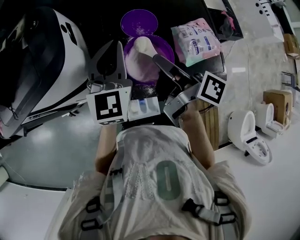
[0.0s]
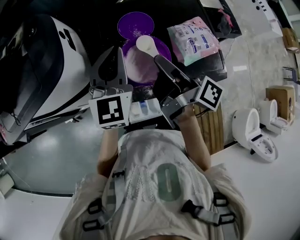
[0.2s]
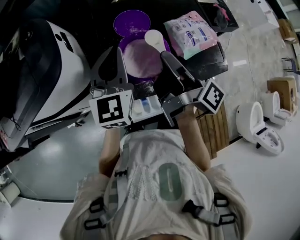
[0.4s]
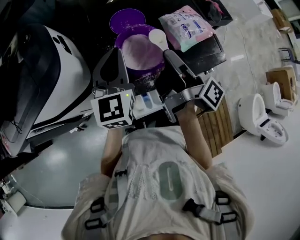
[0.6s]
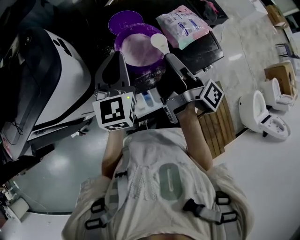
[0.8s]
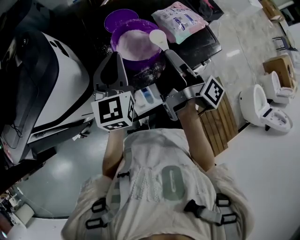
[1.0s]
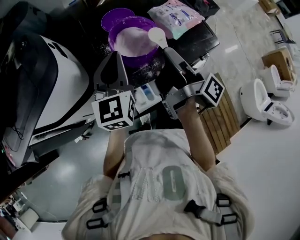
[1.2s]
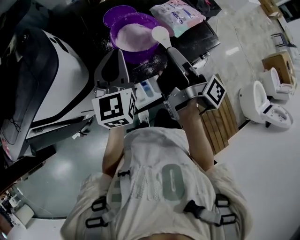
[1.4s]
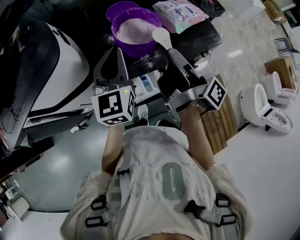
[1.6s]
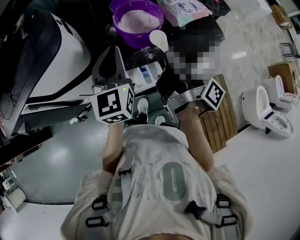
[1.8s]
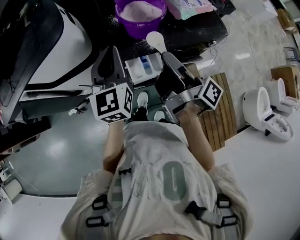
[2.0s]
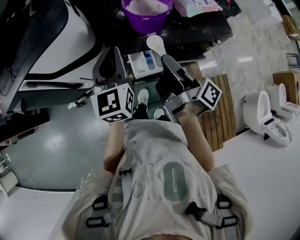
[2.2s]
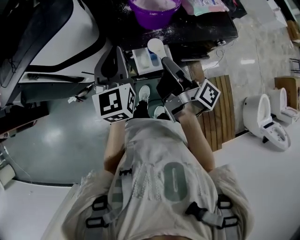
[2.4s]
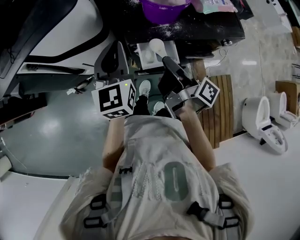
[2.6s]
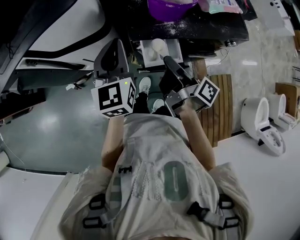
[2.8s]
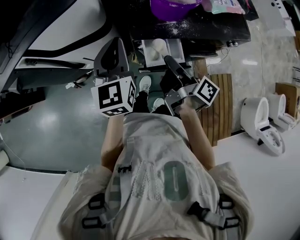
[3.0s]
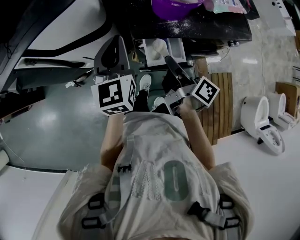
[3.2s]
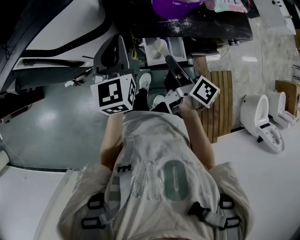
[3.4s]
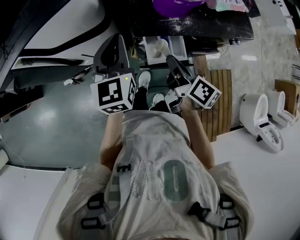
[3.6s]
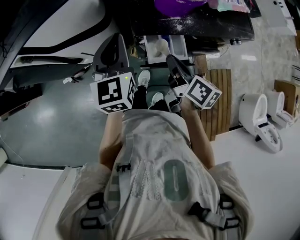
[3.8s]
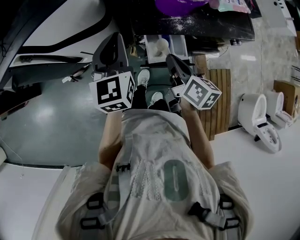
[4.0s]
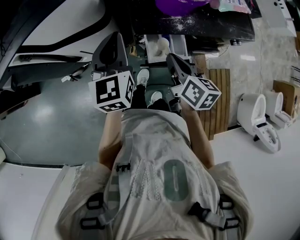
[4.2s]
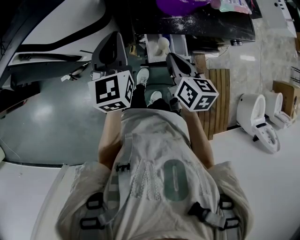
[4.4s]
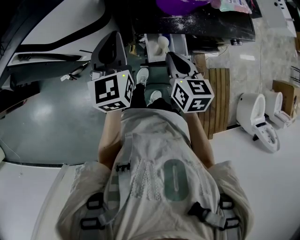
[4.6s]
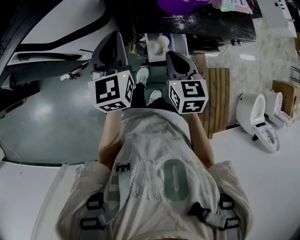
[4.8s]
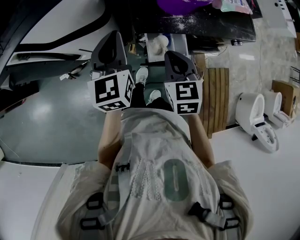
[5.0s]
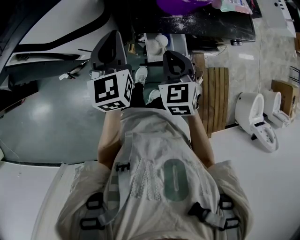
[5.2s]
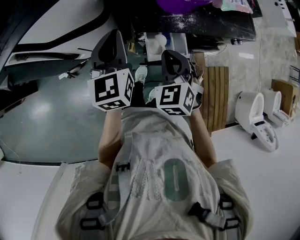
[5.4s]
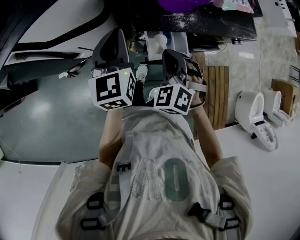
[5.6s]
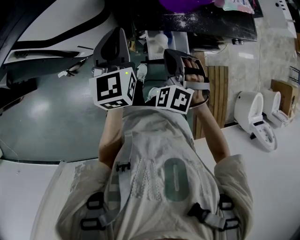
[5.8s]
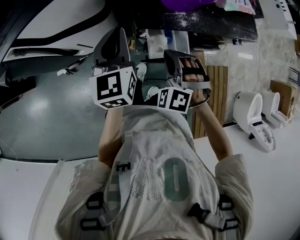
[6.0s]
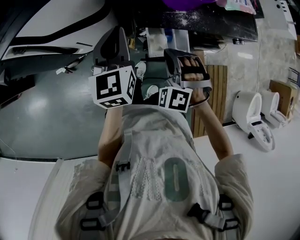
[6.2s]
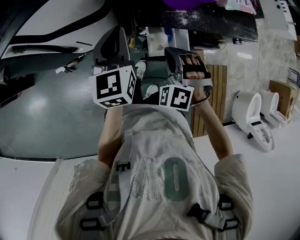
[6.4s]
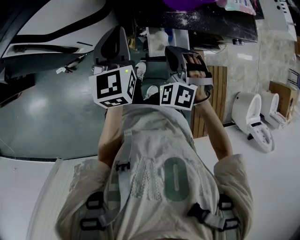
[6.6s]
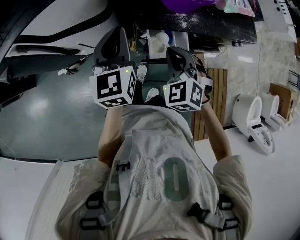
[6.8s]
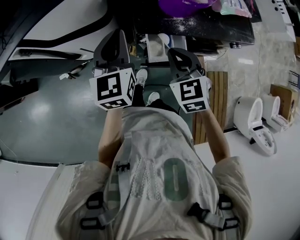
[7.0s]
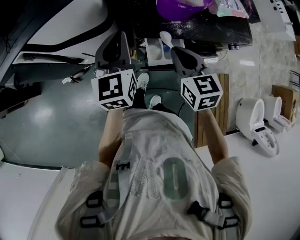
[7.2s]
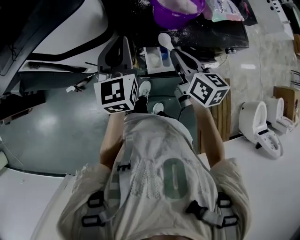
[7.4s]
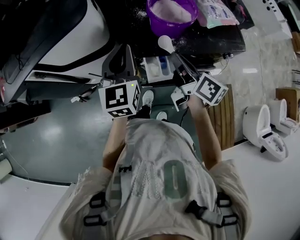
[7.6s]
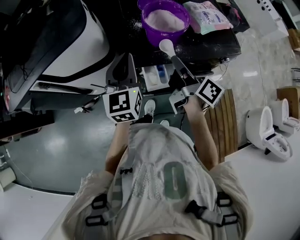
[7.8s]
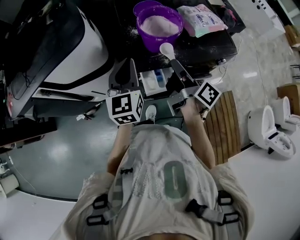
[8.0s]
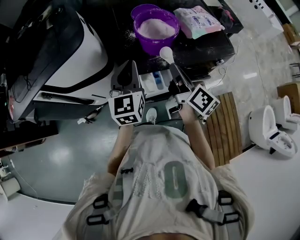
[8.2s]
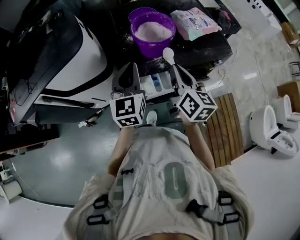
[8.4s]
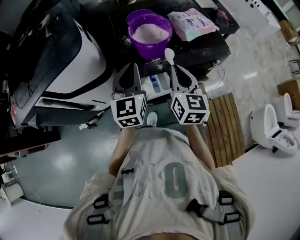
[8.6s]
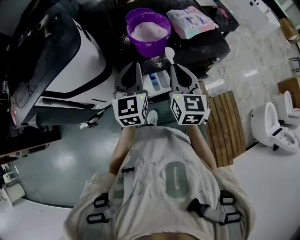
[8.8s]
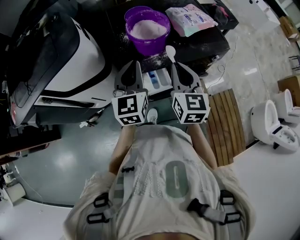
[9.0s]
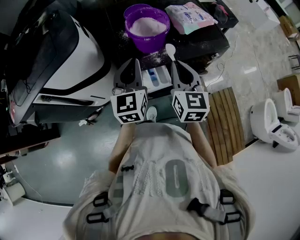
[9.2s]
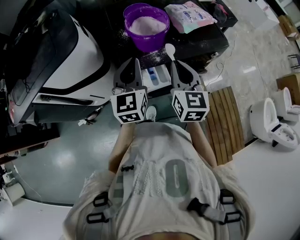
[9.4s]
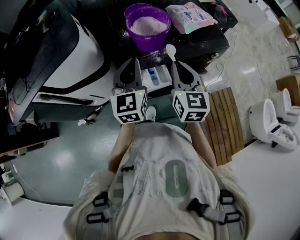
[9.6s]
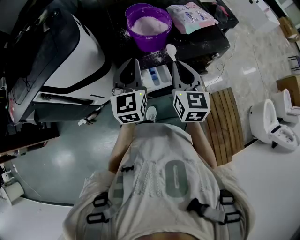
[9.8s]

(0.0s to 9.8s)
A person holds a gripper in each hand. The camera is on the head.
0.0s - 1.4s: The right gripper is displaced backward and to the right by some 10 cm, and swivels approximately 40 degrees; the left gripper is displaced backward by roughly 10 cm.
1.4s - 2.8s: The right gripper goes some 20 cm downward, backward and to the left, and turns by about 20 degrees; the left gripper is displaced backward, to the left and downward by some 15 cm.
2.8s - 4.2s: The right gripper rotates around the line of its fingers by some 50 degrees, counterclockwise from behind.
4.2s - 5.6s: The right gripper rotates around the line of its fingers by some 80 degrees, counterclockwise from behind.
5.6s - 7.0s: The right gripper changes its angle by about 30 degrees.
7.0s - 8.4s: The right gripper travels upward and to the right by some 15 cm, and rotates around the line of its fingers by approximately 50 degrees, clockwise from behind. Meanwhile the left gripper moves to the right, some 10 cm.
8.4s - 9.8s: The right gripper turns by approximately 30 degrees.

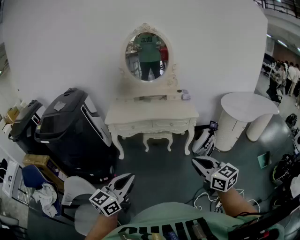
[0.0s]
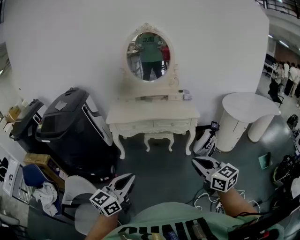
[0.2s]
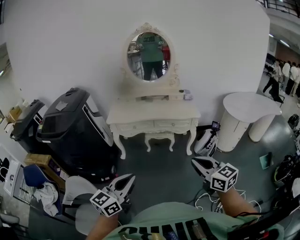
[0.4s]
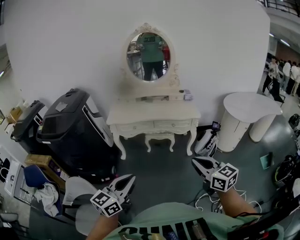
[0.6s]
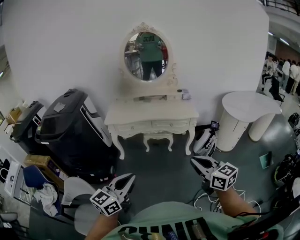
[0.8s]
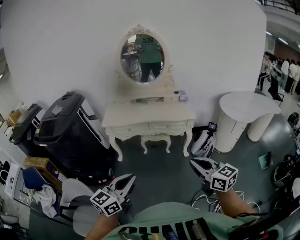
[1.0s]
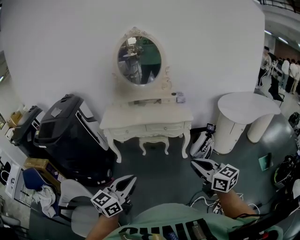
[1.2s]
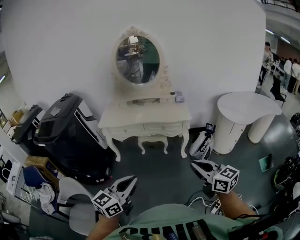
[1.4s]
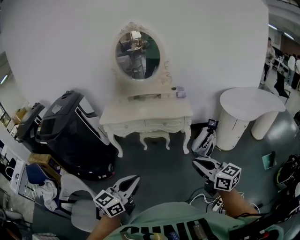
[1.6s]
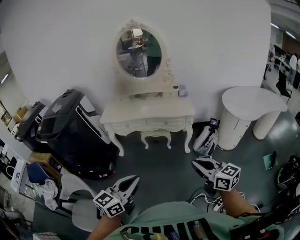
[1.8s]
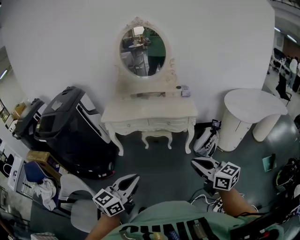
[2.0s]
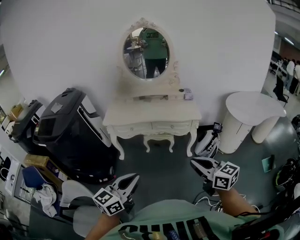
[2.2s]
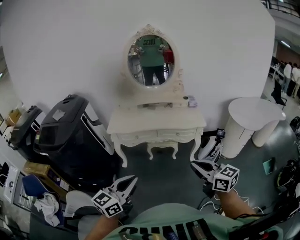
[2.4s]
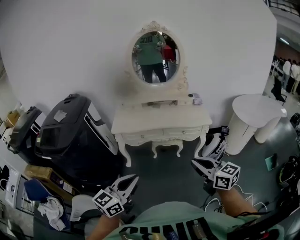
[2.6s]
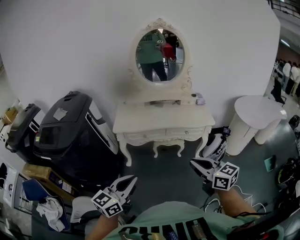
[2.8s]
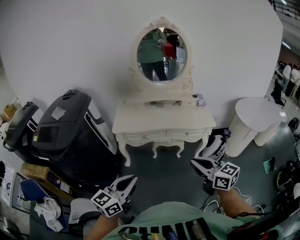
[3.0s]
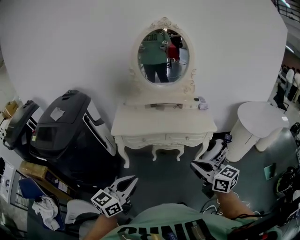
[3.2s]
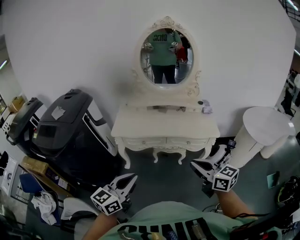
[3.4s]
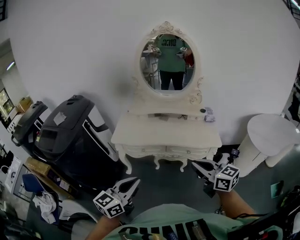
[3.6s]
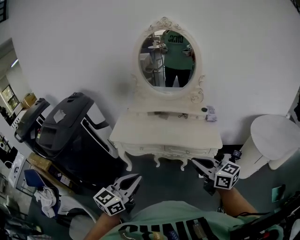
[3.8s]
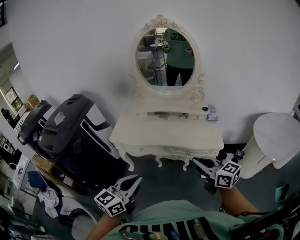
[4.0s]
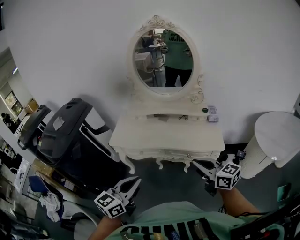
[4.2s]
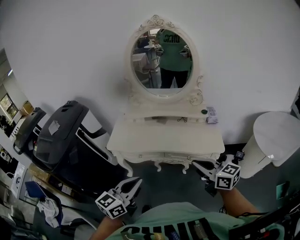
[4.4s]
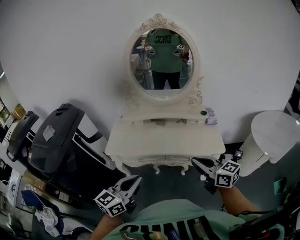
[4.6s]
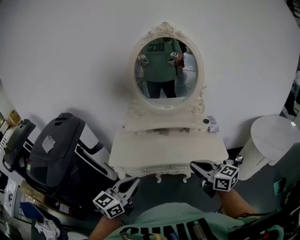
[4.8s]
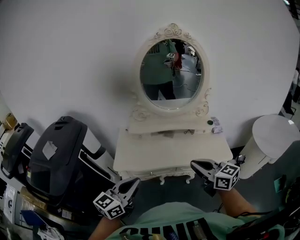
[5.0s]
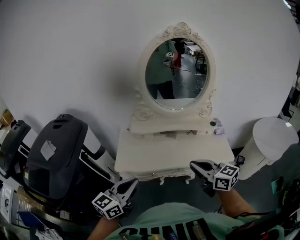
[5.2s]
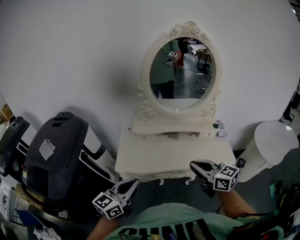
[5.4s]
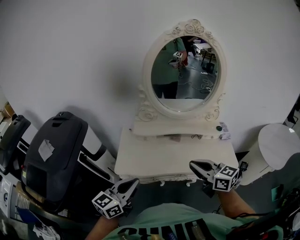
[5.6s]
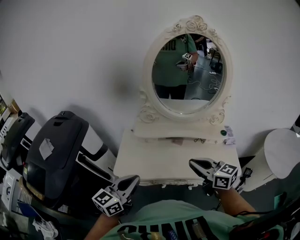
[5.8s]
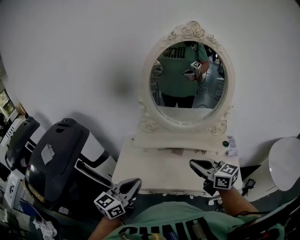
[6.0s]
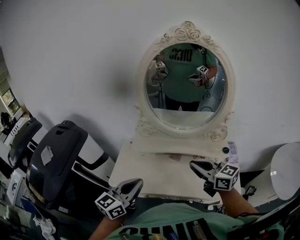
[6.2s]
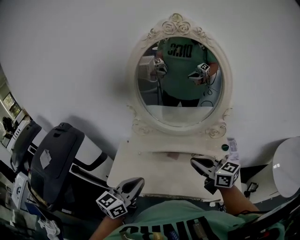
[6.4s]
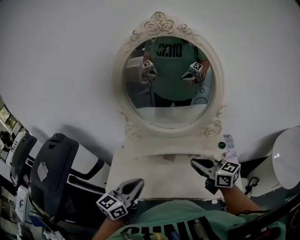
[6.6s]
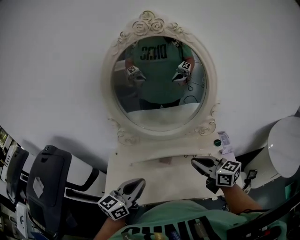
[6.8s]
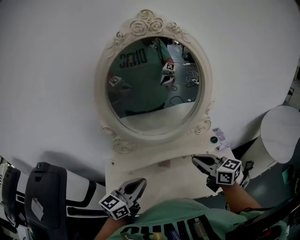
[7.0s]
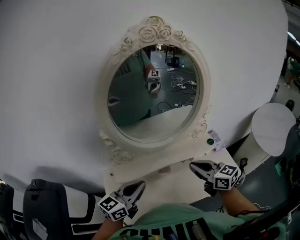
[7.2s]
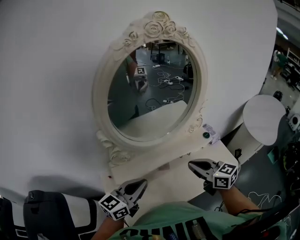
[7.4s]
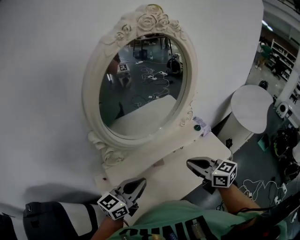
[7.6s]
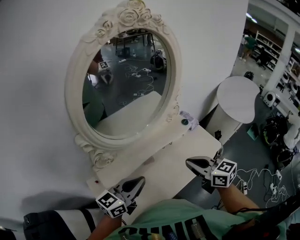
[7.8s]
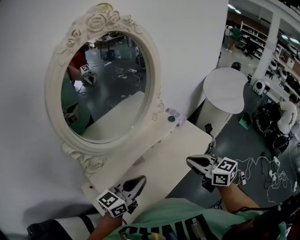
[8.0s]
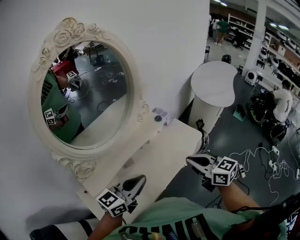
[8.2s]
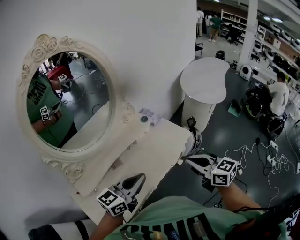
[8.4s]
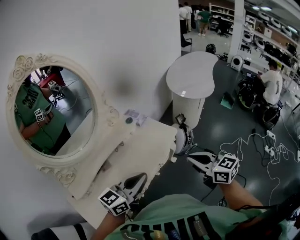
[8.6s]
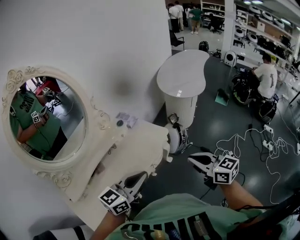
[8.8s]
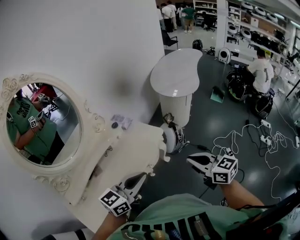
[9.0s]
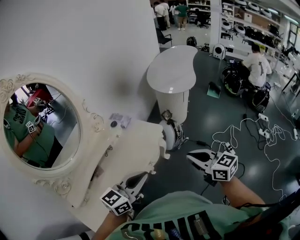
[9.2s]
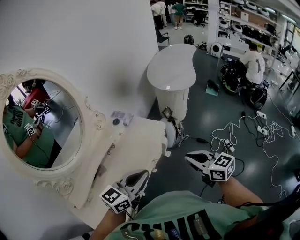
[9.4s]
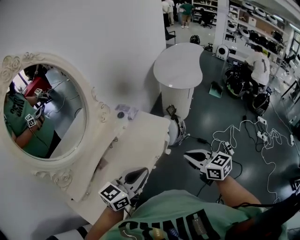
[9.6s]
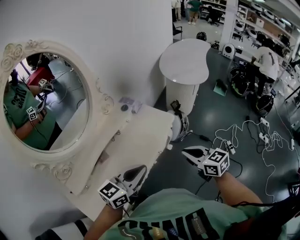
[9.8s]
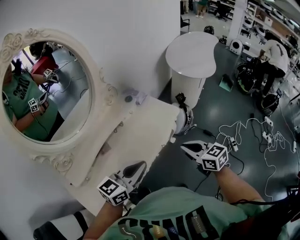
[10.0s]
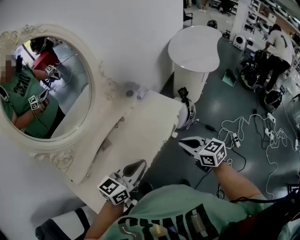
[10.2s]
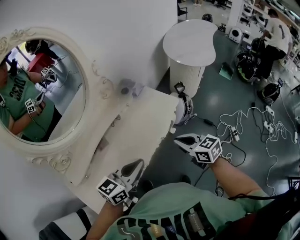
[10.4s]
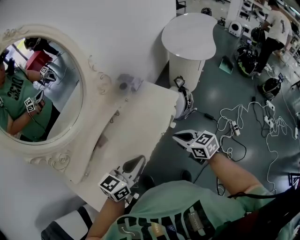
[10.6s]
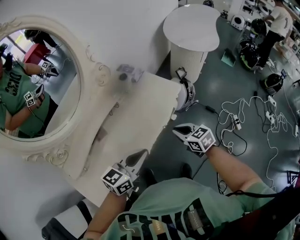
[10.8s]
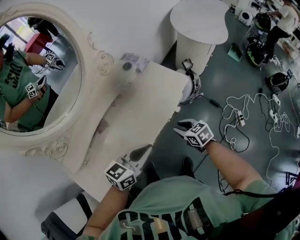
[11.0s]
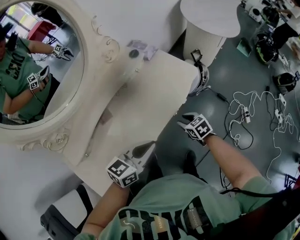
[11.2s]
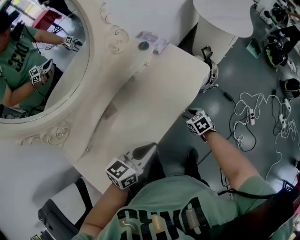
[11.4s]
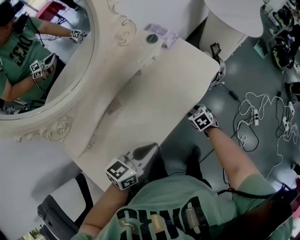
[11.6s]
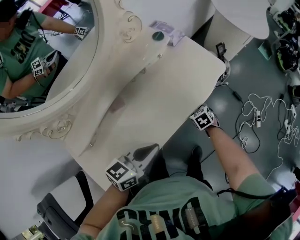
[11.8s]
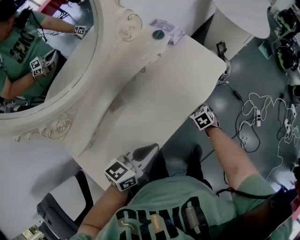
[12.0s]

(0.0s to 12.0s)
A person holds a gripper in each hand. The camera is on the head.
0.0s - 1.6s: Both grippers move to the right, approximately 15 cm.
1.6s - 3.0s: Both grippers travel together to the left and forward, roughly 35 cm.
3.0s - 4.4s: The right gripper is displaced forward and to the right by roughly 30 cm, while the left gripper travels to the right and forward by about 25 cm.
4.4s - 6.0s: Both grippers travel together forward and to the left, approximately 30 cm.
6.0s - 7.6s: The left gripper changes place by about 25 cm, and turns by some 40 degrees, while the right gripper changes place by roughly 10 cm, and turns by approximately 40 degrees.
7.6s - 9.0s: The pair of grippers is taken some 40 cm. The right gripper swivels some 30 degrees. Meanwhile the left gripper turns by some 30 degrees.
9.0s - 10.4s: The grippers both shift to the left and downward by some 15 cm.
10.4s - 12.0s: The right gripper is displaced downward by approximately 35 cm, points its fingers roughly 40 degrees further downward, and opens its fingers; the left gripper moves downward and to the left, some 15 cm.

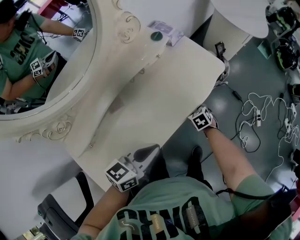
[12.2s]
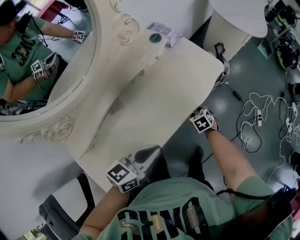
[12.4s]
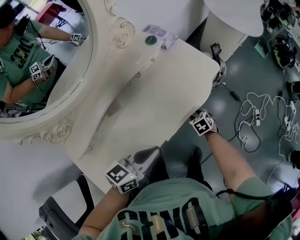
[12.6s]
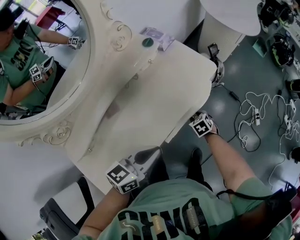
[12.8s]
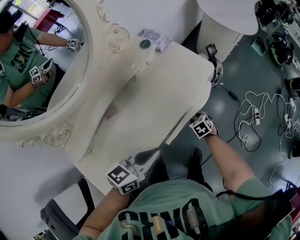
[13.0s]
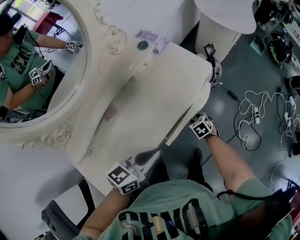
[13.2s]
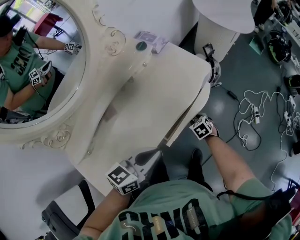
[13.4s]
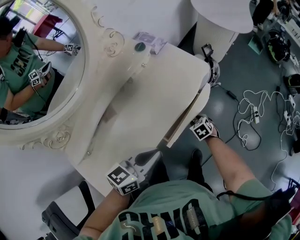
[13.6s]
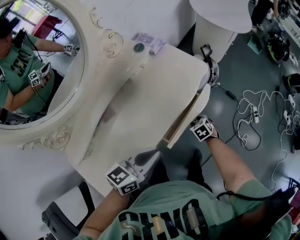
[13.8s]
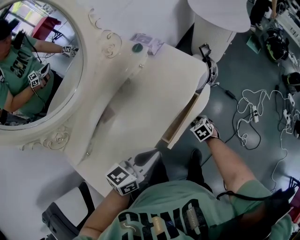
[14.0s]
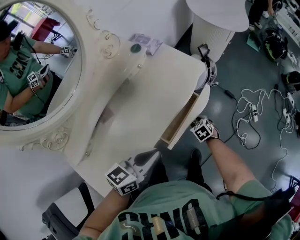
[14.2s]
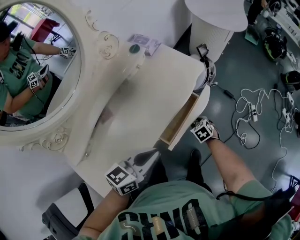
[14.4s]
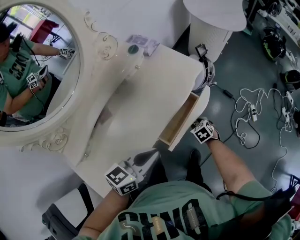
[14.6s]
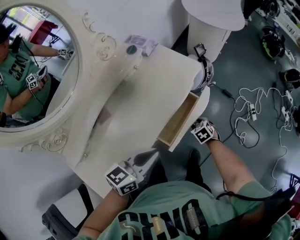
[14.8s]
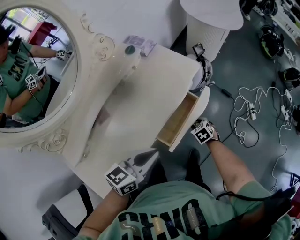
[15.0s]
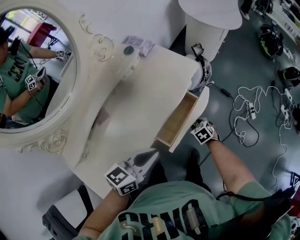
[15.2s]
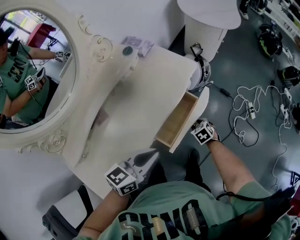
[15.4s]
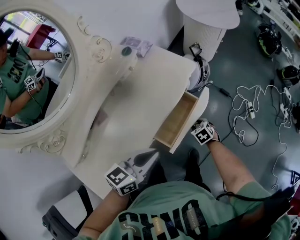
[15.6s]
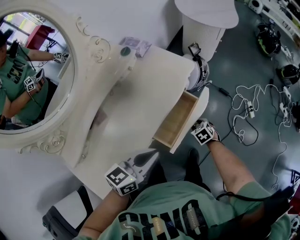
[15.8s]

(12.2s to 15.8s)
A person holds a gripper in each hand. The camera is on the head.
12.2s - 14.0s: The right gripper goes approximately 10 cm to the right and backward; the left gripper goes approximately 5 cm to the right.
14.0s - 15.8s: The right gripper goes roughly 5 cm to the right.
